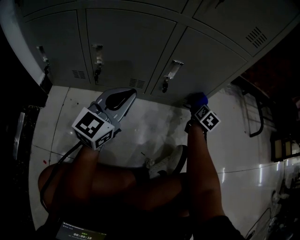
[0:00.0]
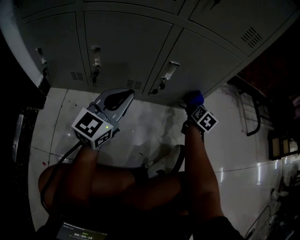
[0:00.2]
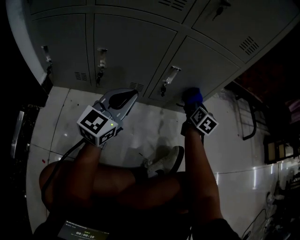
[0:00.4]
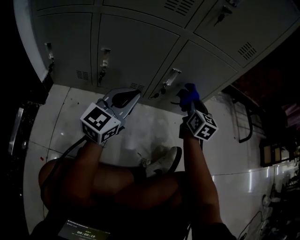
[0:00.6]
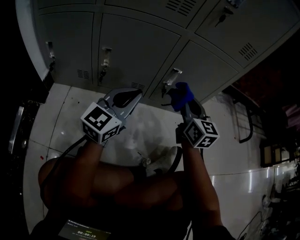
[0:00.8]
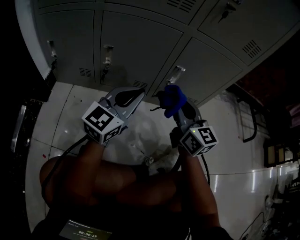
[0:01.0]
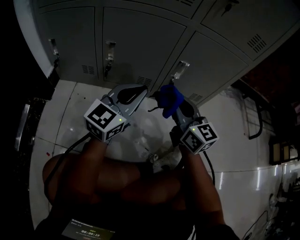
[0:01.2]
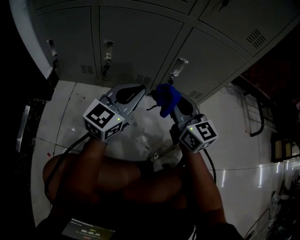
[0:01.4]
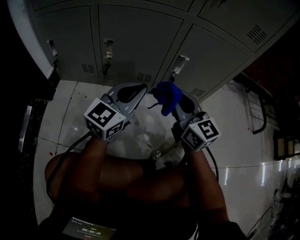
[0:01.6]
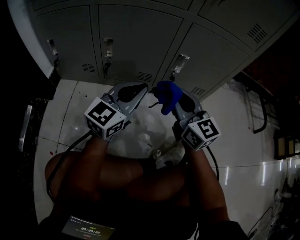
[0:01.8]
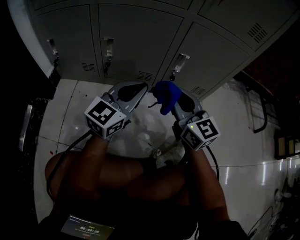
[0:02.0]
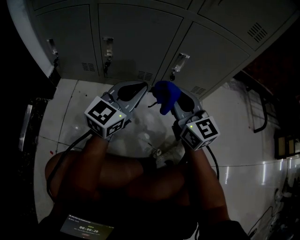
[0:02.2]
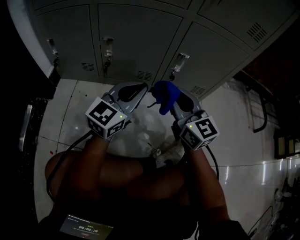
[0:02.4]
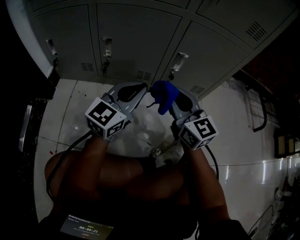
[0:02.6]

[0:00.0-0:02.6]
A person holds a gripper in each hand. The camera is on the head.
0:00.0 to 0:01.2: The right gripper heads to the left, backward and upward, covering roughly 35 cm, and swivels roughly 60 degrees.
0:01.2 to 0:02.6: The grippers move only a little.

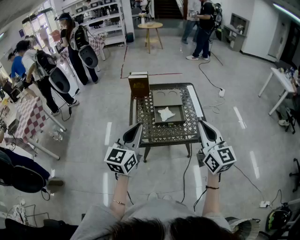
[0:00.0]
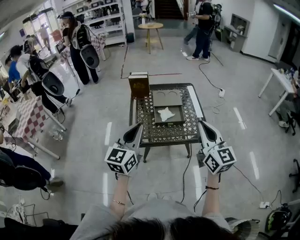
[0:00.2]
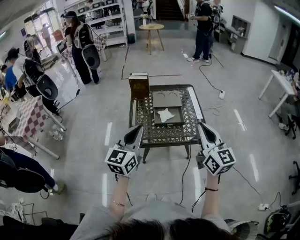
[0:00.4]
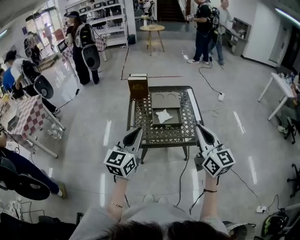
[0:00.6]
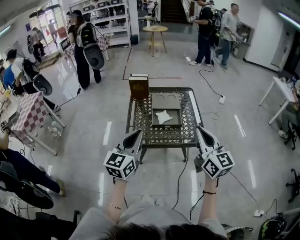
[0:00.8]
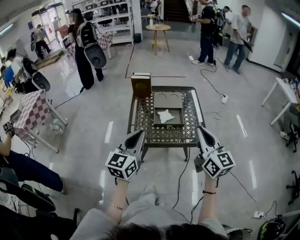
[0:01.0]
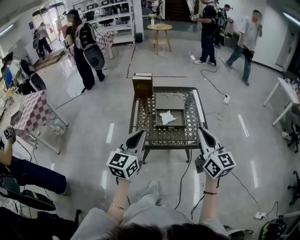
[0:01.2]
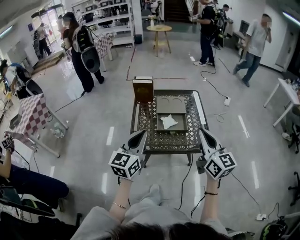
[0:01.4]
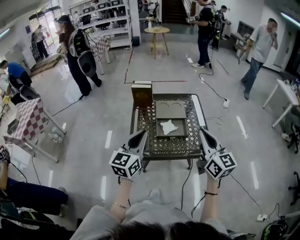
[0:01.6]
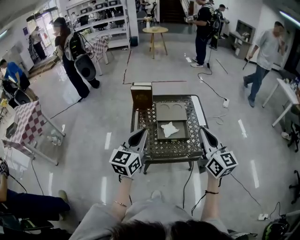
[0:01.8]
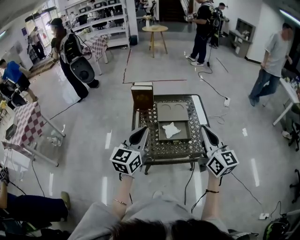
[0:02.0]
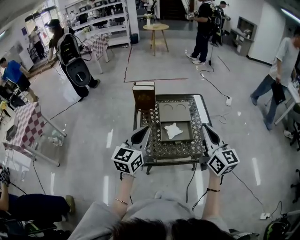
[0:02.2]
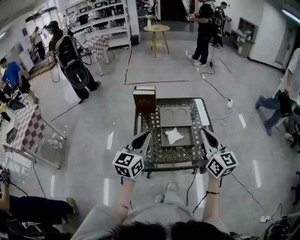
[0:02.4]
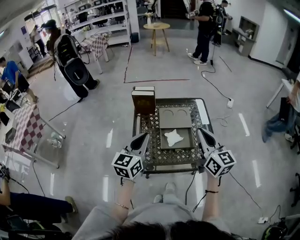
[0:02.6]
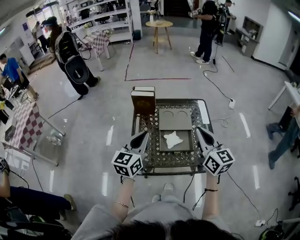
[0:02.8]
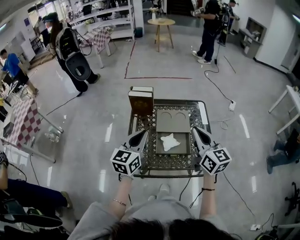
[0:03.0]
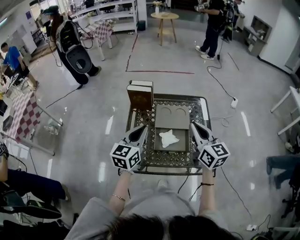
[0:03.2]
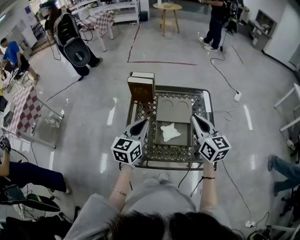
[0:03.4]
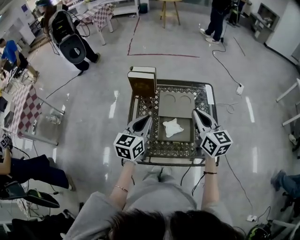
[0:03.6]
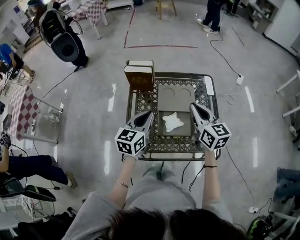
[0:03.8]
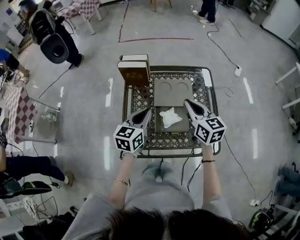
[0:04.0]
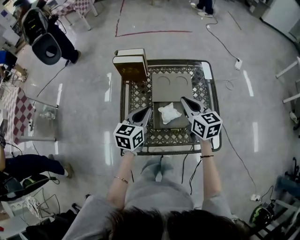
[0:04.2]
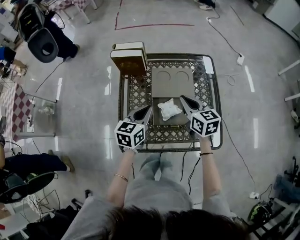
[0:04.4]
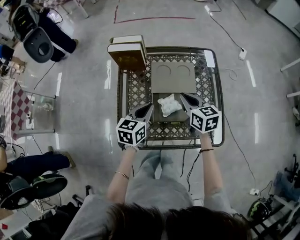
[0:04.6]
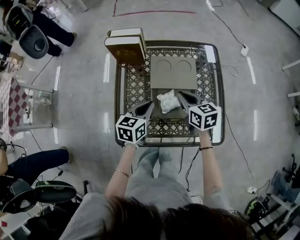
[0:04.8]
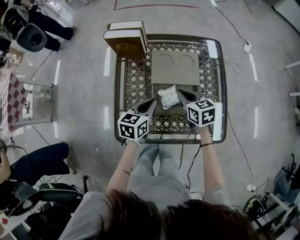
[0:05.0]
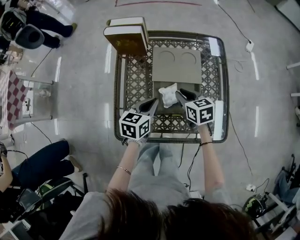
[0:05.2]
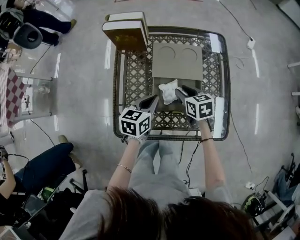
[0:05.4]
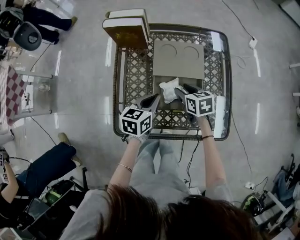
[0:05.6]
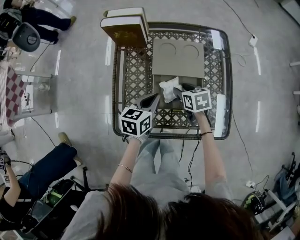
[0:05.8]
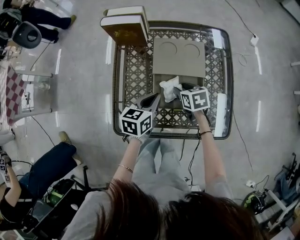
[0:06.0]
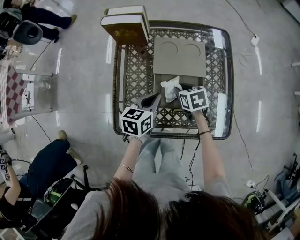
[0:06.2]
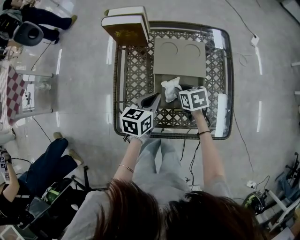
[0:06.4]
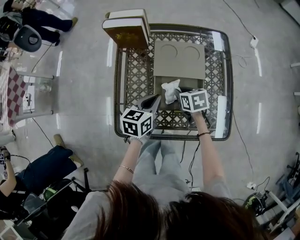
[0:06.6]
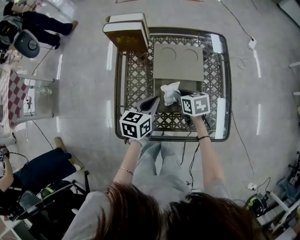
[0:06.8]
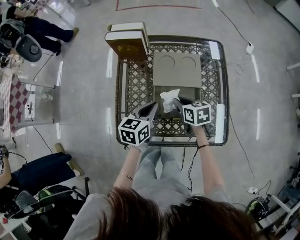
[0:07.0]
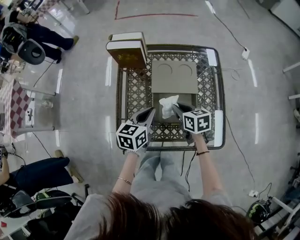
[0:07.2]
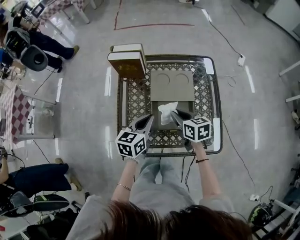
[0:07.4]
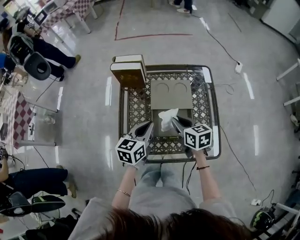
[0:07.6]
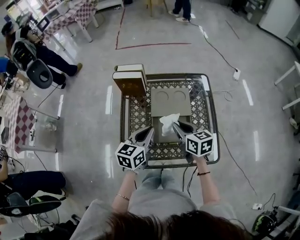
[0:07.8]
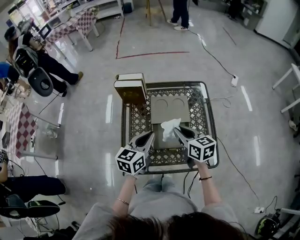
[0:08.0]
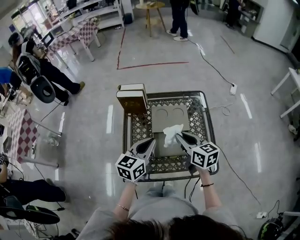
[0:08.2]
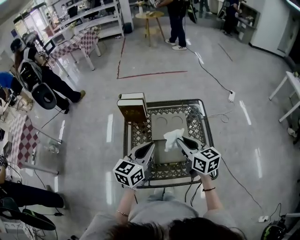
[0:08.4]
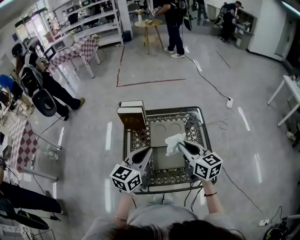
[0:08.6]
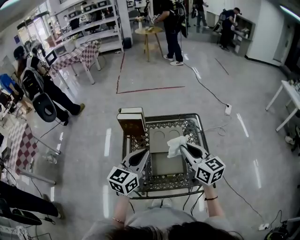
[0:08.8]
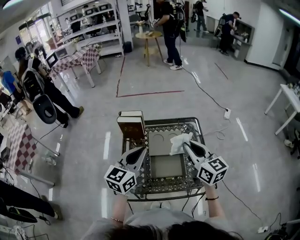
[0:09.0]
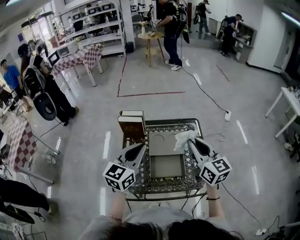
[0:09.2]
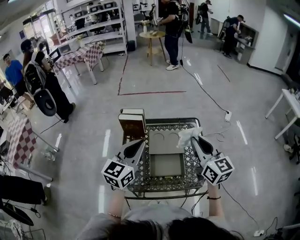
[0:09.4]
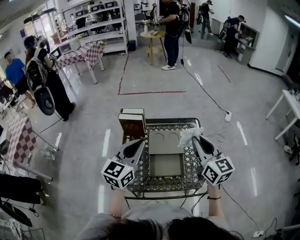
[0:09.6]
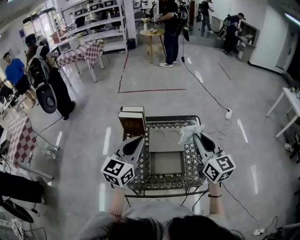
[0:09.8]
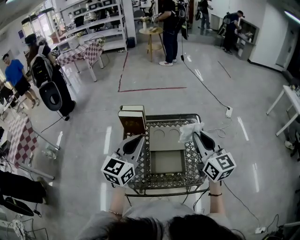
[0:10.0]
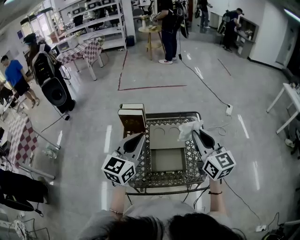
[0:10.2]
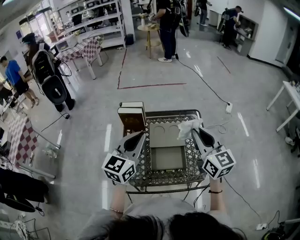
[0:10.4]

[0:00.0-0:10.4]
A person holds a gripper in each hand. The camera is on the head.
0:00.0 to 0:01.4: There are only small adjustments of the grippers.
0:01.4 to 0:03.0: Both grippers move forward, some 20 cm.
0:03.0 to 0:04.4: The grippers both shift downward and forward by some 20 cm. The left gripper turns by roughly 20 degrees. The right gripper swivels roughly 20 degrees.
0:04.4 to 0:06.0: The left gripper heads downward, covering roughly 10 cm. Meanwhile the right gripper travels downward by roughly 20 cm, swivels roughly 30 degrees, and opens.
0:06.0 to 0:07.4: Both grippers travel together upward, some 10 cm. The right gripper closes its fingers.
0:07.4 to 0:09.0: The grippers both shift upward by some 25 cm. The right gripper swivels some 40 degrees; the left gripper changes its angle by approximately 30 degrees.
0:09.0 to 0:10.4: The grippers stay close to where they were, moving slightly.

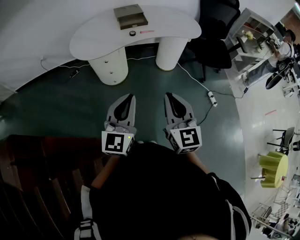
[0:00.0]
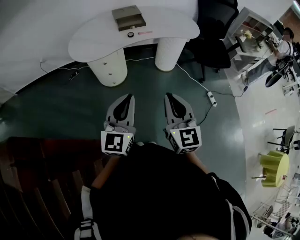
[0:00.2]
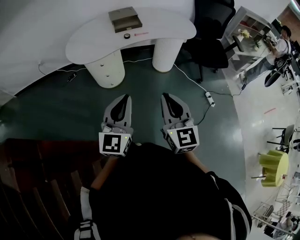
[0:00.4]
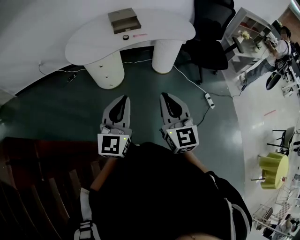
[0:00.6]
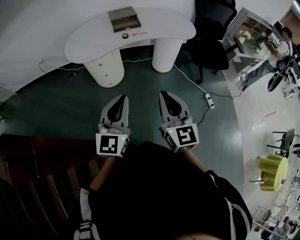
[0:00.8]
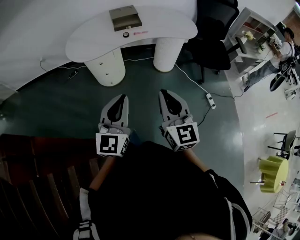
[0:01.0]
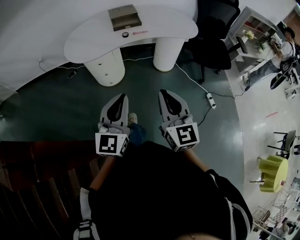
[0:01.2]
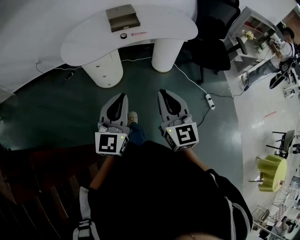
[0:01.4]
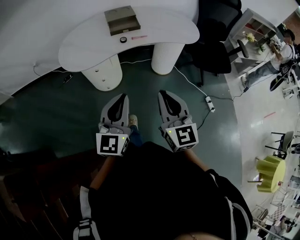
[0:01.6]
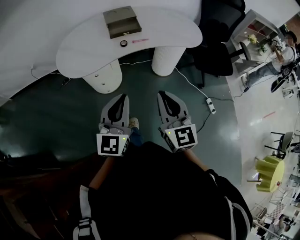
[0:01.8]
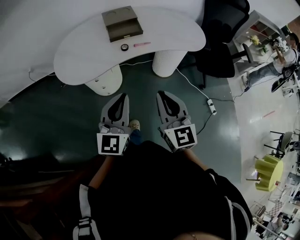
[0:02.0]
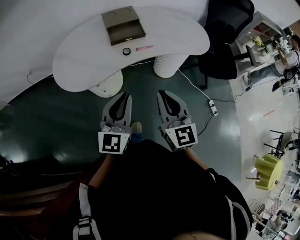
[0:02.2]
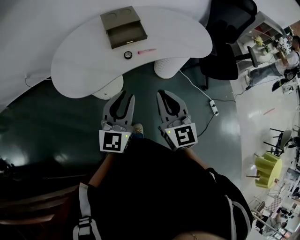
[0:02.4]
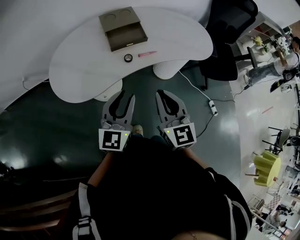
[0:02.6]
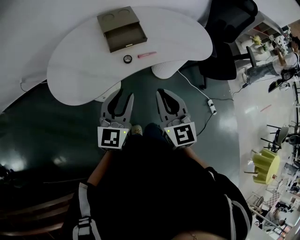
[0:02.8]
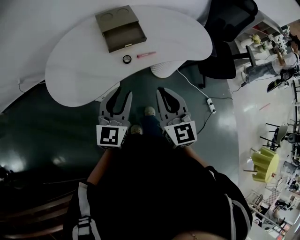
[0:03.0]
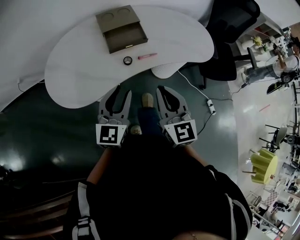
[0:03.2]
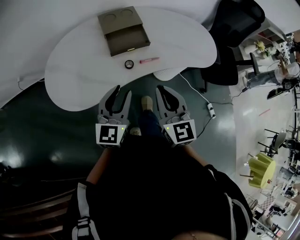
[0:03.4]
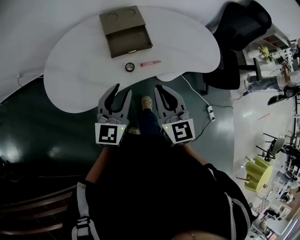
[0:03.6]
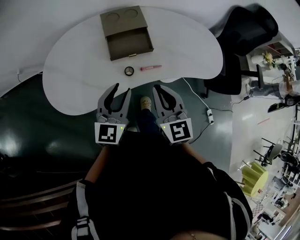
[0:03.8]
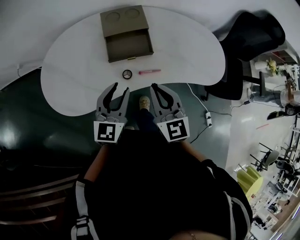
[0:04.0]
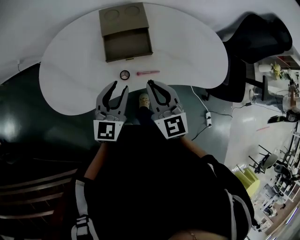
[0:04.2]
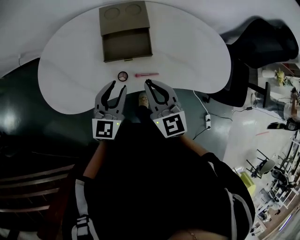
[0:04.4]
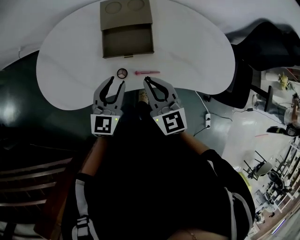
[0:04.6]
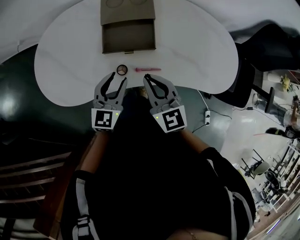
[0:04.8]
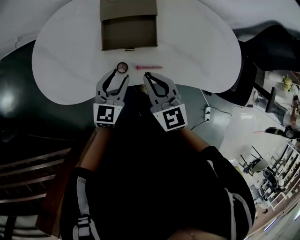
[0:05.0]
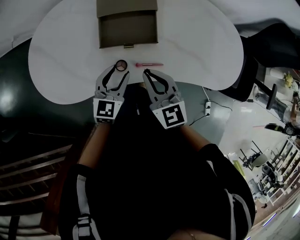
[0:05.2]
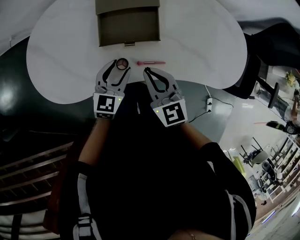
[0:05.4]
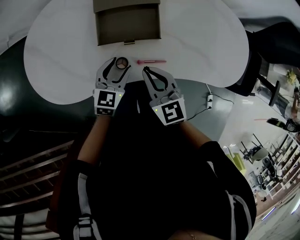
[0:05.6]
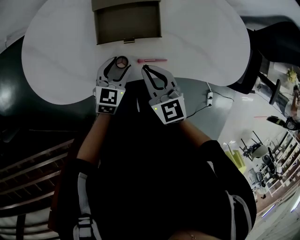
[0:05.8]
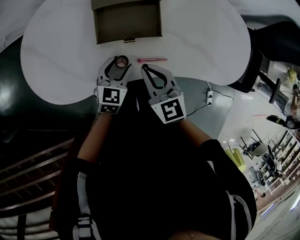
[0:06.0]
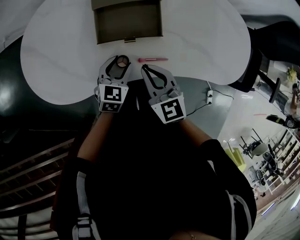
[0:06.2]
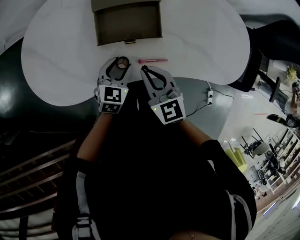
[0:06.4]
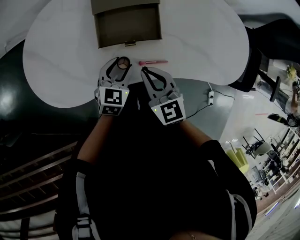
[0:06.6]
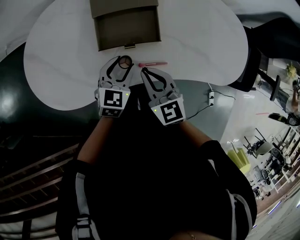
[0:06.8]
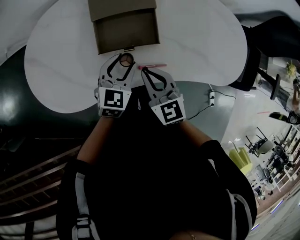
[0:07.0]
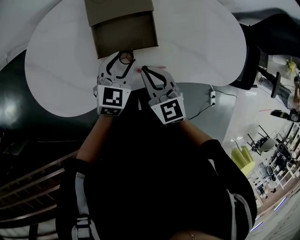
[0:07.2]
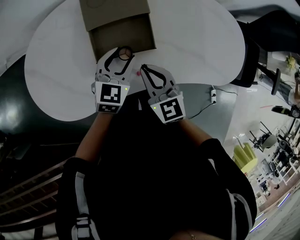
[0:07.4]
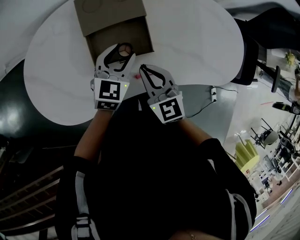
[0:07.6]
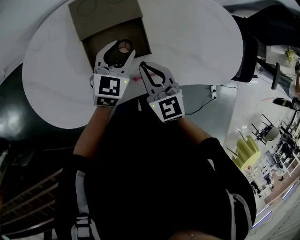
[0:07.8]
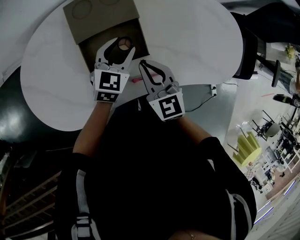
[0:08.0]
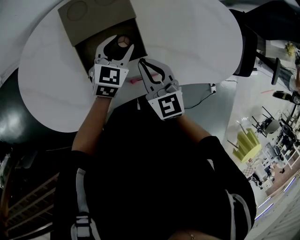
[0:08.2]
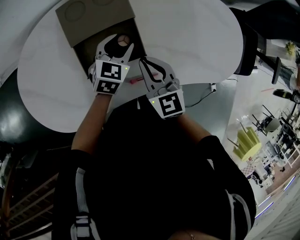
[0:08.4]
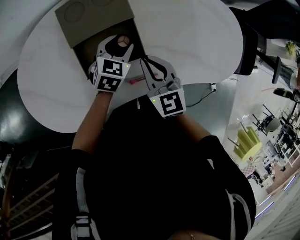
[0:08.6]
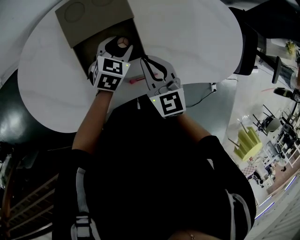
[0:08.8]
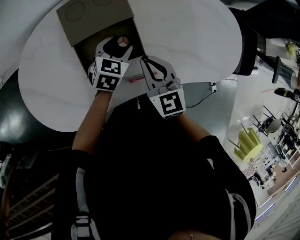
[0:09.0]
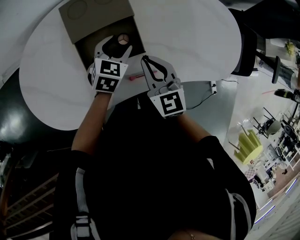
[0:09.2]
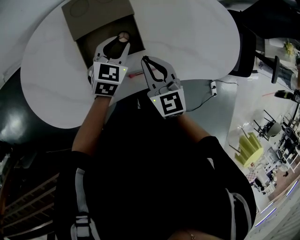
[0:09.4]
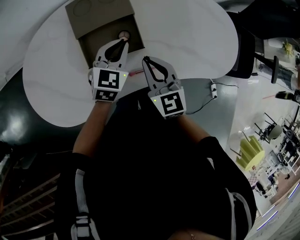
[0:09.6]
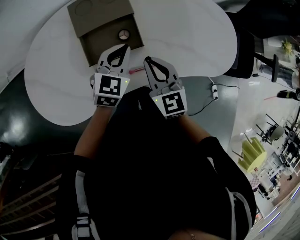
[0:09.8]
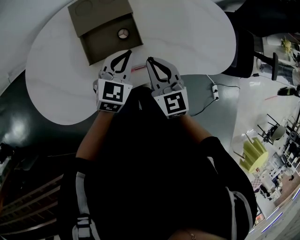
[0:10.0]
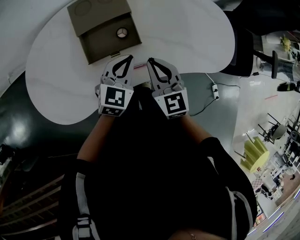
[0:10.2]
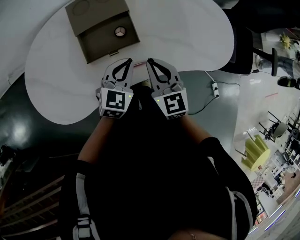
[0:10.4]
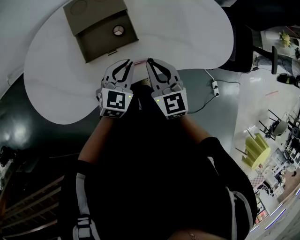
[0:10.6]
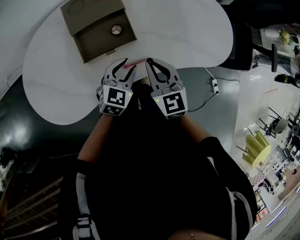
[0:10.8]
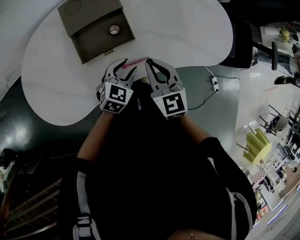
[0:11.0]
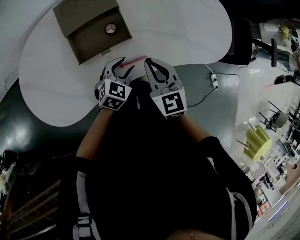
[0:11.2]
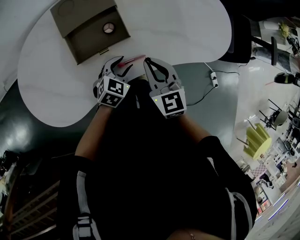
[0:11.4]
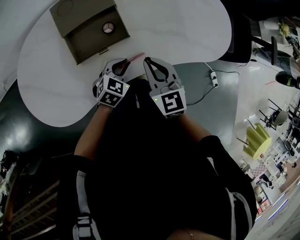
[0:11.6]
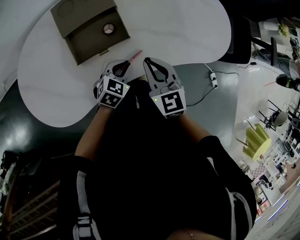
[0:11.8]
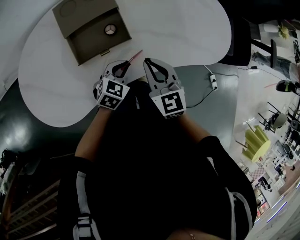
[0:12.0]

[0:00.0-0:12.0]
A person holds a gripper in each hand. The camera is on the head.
0:00.0 to 0:01.6: The grippers both shift forward by roughly 10 cm.
0:01.6 to 0:03.0: The two grippers go about 30 cm forward. The left gripper opens its fingers.
0:03.0 to 0:04.4: The left gripper goes about 20 cm forward and downward. The right gripper shifts approximately 20 cm forward, and turns by approximately 20 degrees.
0:04.4 to 0:06.0: The right gripper travels downward by some 10 cm. The left gripper is displaced downward and forward by some 15 cm, changes its angle by about 20 degrees, and opens up.
0:06.0 to 0:07.6: The left gripper is displaced forward, upward and to the right by about 15 cm, while the right gripper heads forward, covering roughly 5 cm.
0:07.6 to 0:09.0: The right gripper changes place by about 5 cm. The left gripper heads downward, covering approximately 10 cm.
0:09.0 to 0:10.4: The left gripper shifts approximately 15 cm backward and upward, and closes; the right gripper travels backward by about 10 cm.
0:10.4 to 0:12.0: The left gripper shifts roughly 10 cm downward, and opens and closes again.
